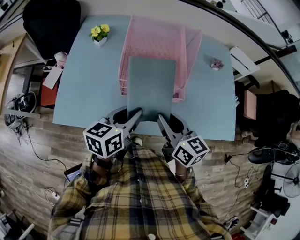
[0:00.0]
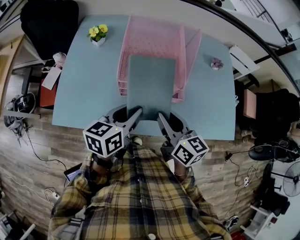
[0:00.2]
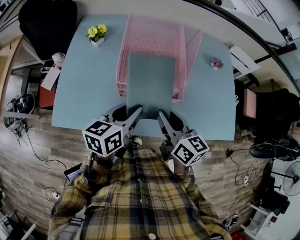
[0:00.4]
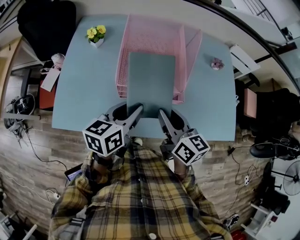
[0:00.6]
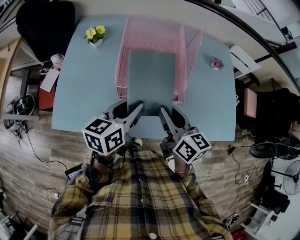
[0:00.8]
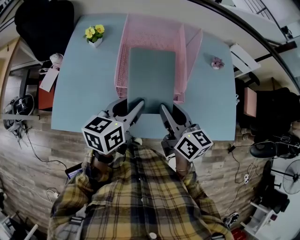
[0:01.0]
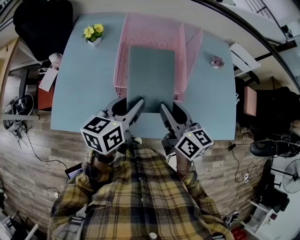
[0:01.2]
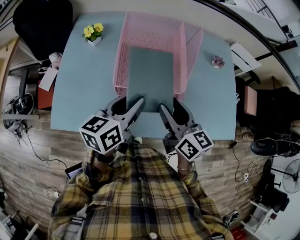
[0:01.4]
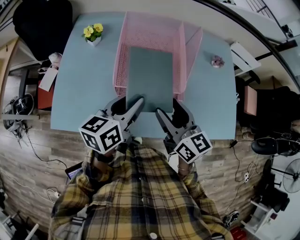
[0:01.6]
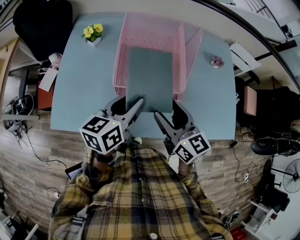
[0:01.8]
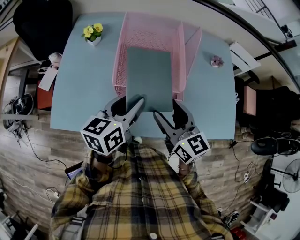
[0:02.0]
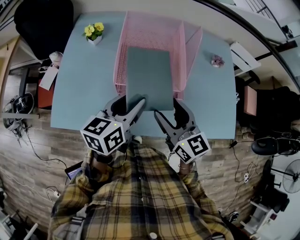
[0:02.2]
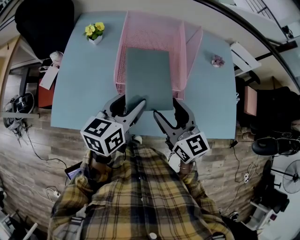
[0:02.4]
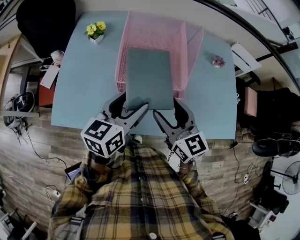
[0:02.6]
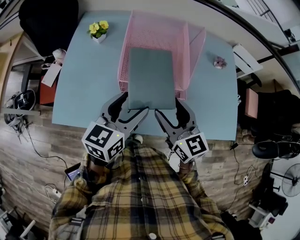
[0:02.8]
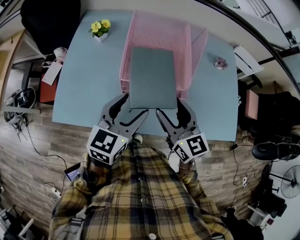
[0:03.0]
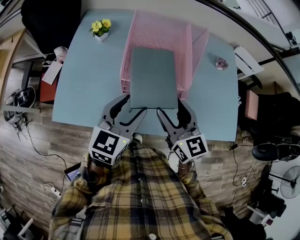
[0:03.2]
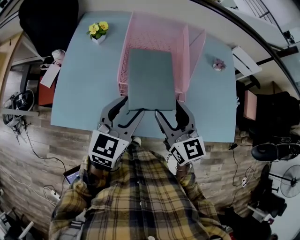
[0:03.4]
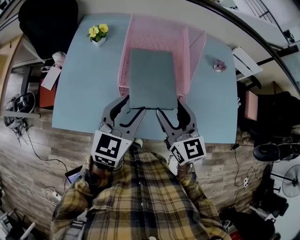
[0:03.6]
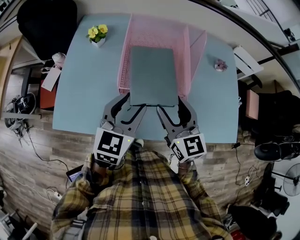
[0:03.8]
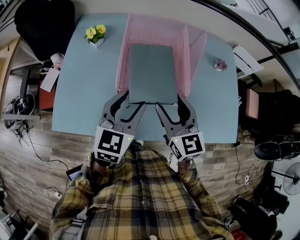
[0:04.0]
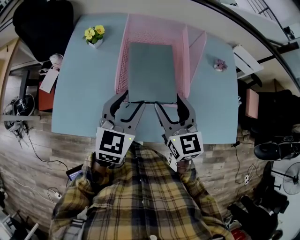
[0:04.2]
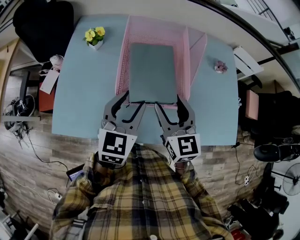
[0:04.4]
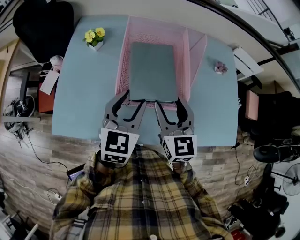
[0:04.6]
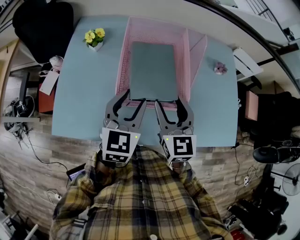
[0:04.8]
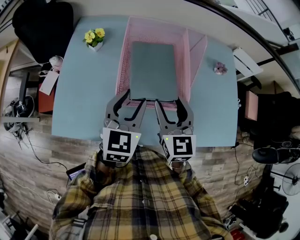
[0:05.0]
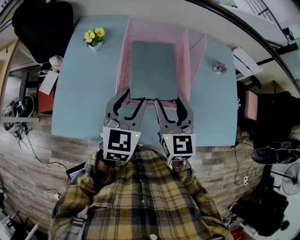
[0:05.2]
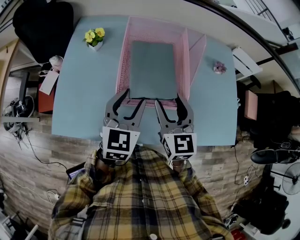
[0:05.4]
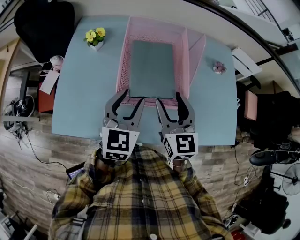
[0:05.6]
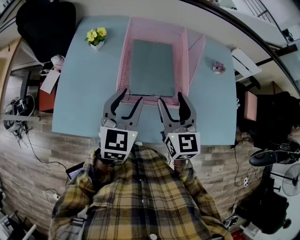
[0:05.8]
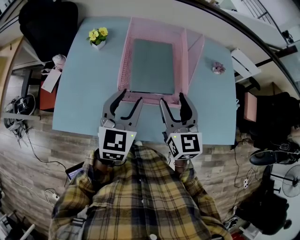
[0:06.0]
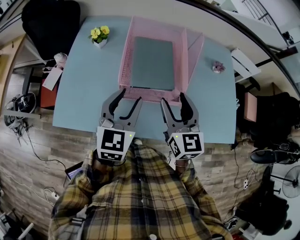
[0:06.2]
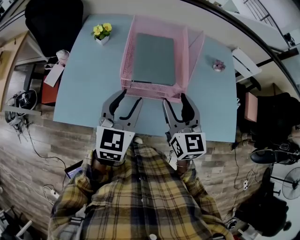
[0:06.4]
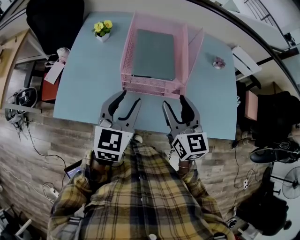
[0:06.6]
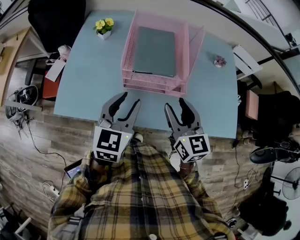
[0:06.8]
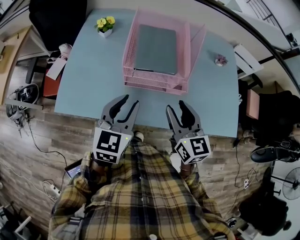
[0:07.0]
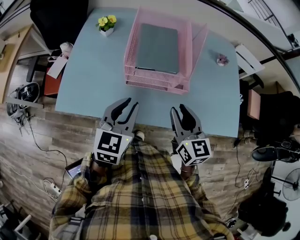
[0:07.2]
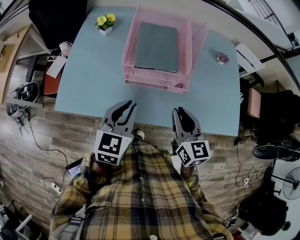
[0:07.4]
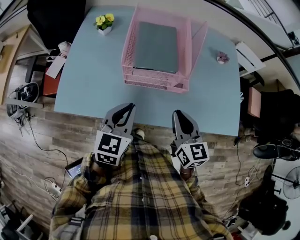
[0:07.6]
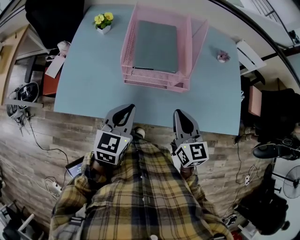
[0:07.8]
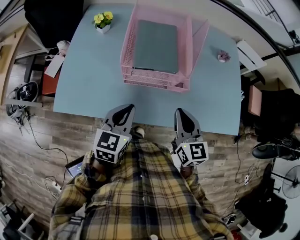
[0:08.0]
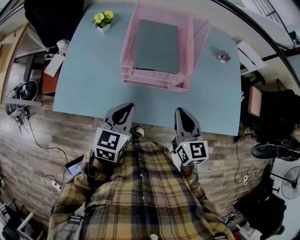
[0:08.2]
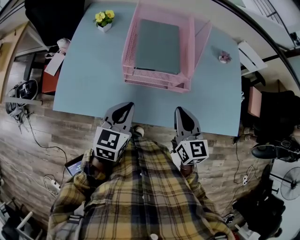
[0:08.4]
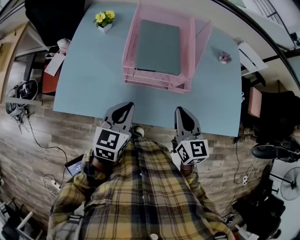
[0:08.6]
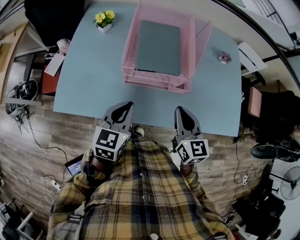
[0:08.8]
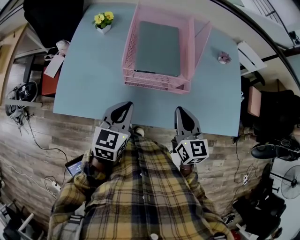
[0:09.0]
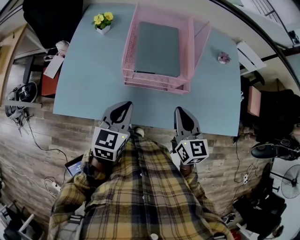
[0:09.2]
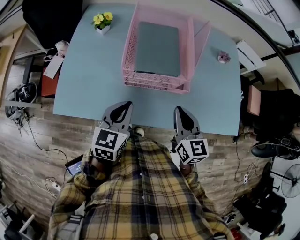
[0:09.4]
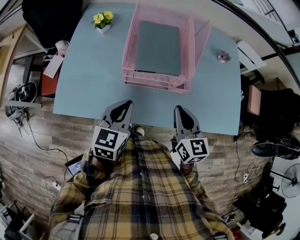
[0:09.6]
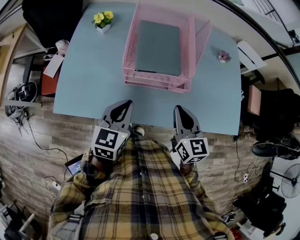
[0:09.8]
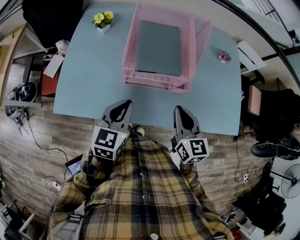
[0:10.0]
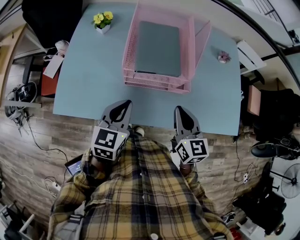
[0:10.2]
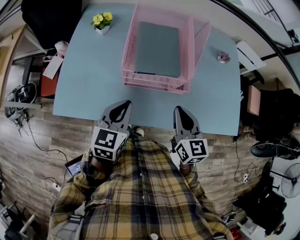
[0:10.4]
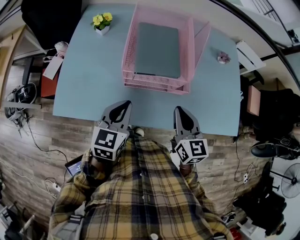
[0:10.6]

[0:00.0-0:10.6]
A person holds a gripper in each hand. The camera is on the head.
0:00.0 to 0:01.6: The left gripper travels forward by some 5 cm. Meanwhile the right gripper moves about 5 cm, and opens up.
0:01.6 to 0:03.0: The left gripper changes its angle by roughly 30 degrees, and opens its fingers.
0:03.0 to 0:04.6: The grippers both shift forward by roughly 5 cm.
0:04.6 to 0:06.0: The grippers stay close to where they were, moving slightly.
0:06.0 to 0:07.6: The right gripper is displaced backward and downward by roughly 15 cm, and closes up. Meanwhile the left gripper heads backward, covering roughly 10 cm, and closes its fingers.
0:07.6 to 0:09.0: The grippers make only small movements.
0:09.0 to 0:10.6: Both grippers stay put.

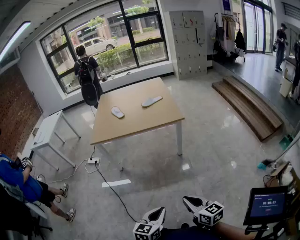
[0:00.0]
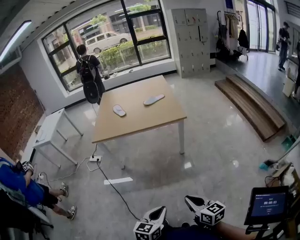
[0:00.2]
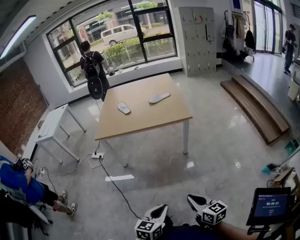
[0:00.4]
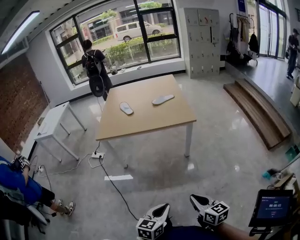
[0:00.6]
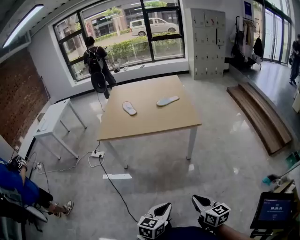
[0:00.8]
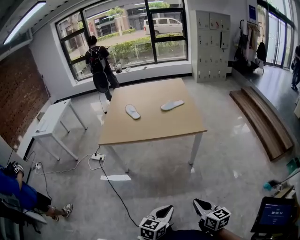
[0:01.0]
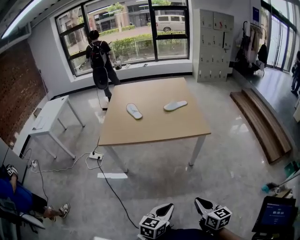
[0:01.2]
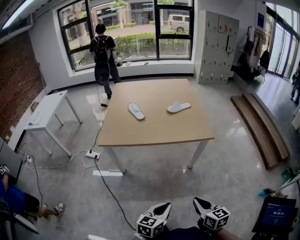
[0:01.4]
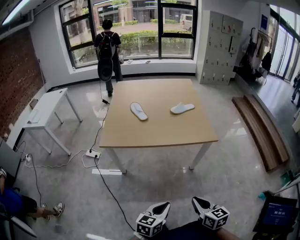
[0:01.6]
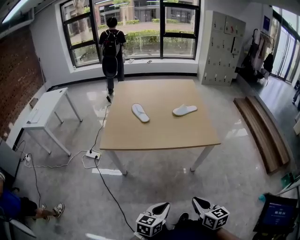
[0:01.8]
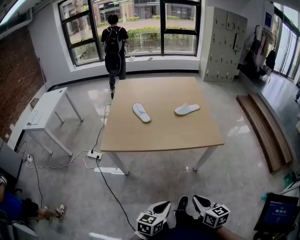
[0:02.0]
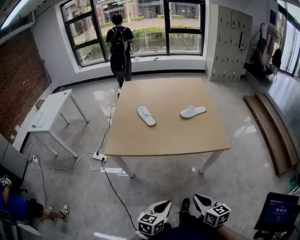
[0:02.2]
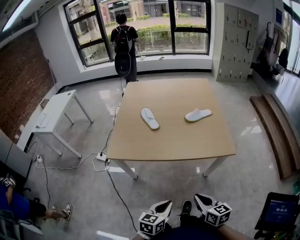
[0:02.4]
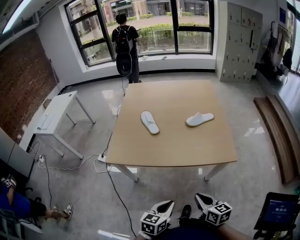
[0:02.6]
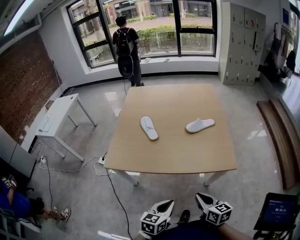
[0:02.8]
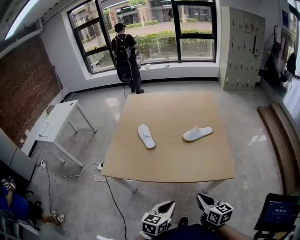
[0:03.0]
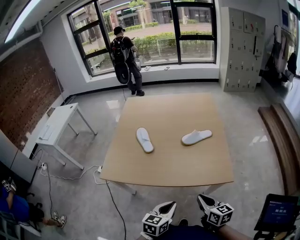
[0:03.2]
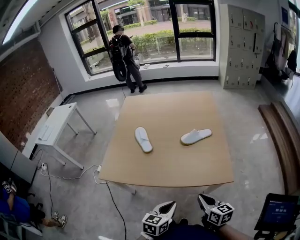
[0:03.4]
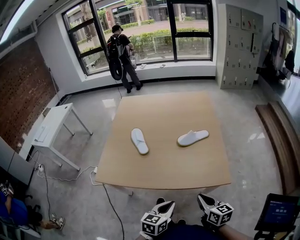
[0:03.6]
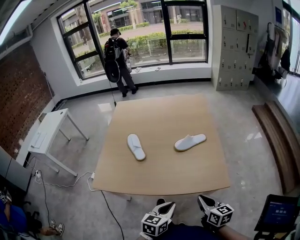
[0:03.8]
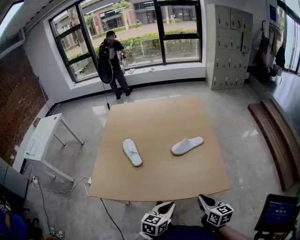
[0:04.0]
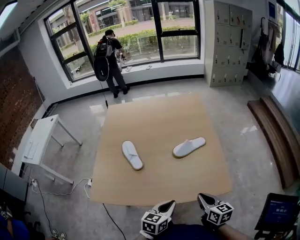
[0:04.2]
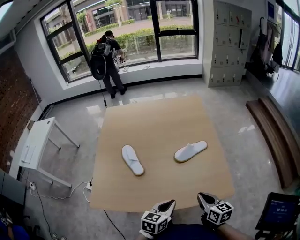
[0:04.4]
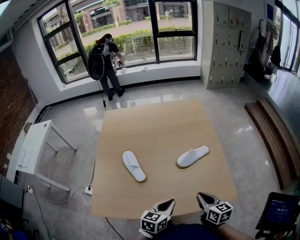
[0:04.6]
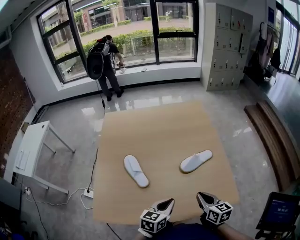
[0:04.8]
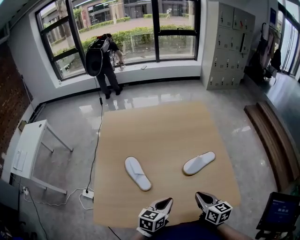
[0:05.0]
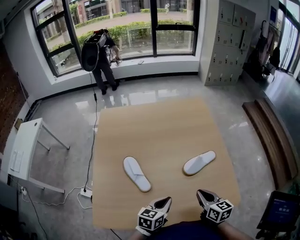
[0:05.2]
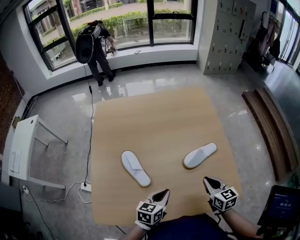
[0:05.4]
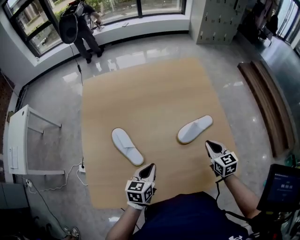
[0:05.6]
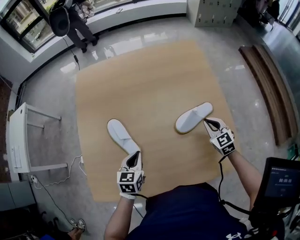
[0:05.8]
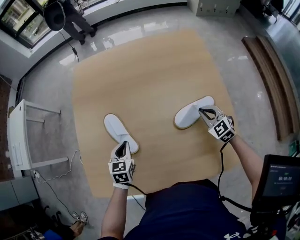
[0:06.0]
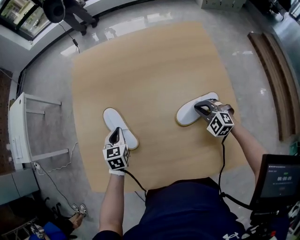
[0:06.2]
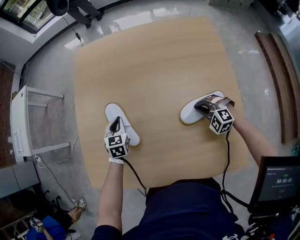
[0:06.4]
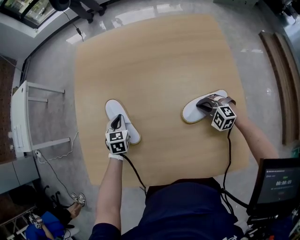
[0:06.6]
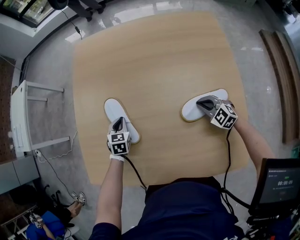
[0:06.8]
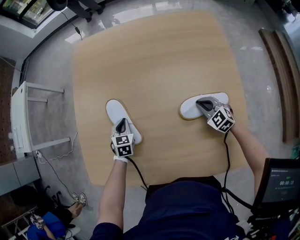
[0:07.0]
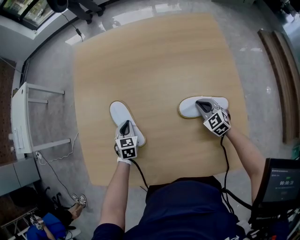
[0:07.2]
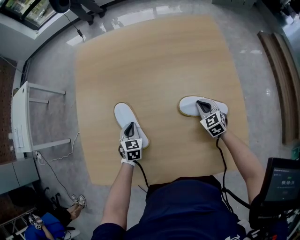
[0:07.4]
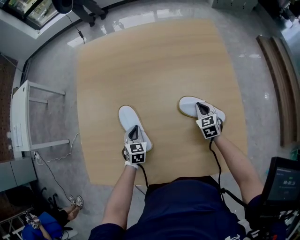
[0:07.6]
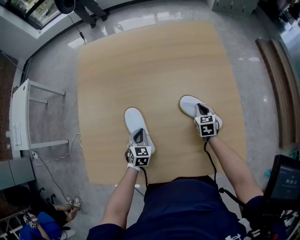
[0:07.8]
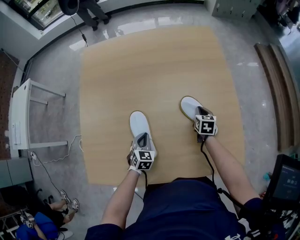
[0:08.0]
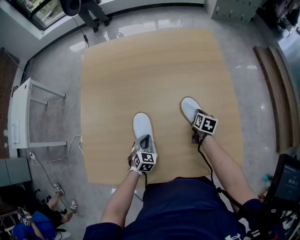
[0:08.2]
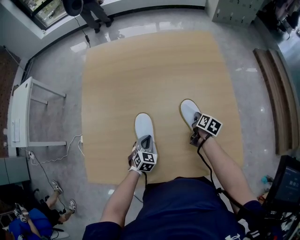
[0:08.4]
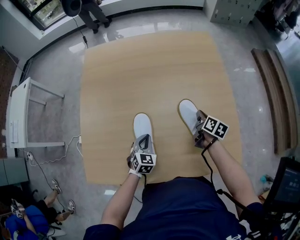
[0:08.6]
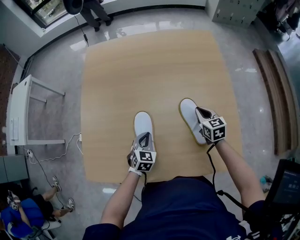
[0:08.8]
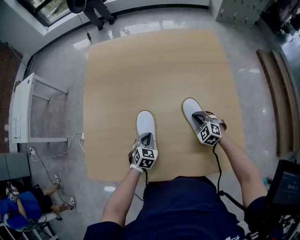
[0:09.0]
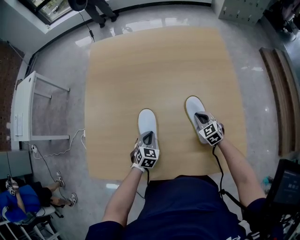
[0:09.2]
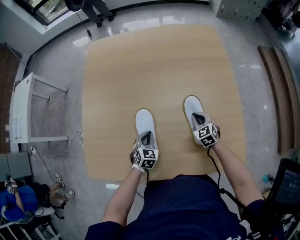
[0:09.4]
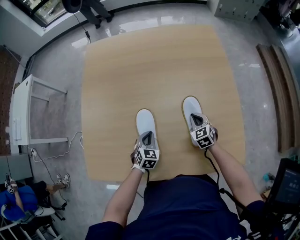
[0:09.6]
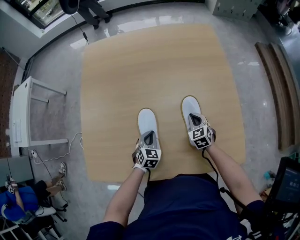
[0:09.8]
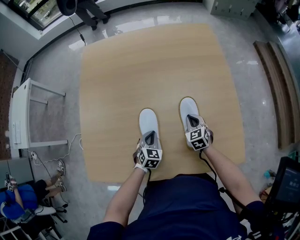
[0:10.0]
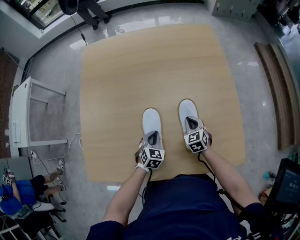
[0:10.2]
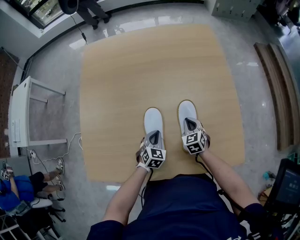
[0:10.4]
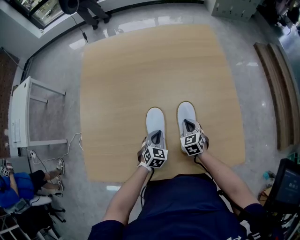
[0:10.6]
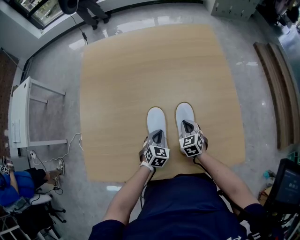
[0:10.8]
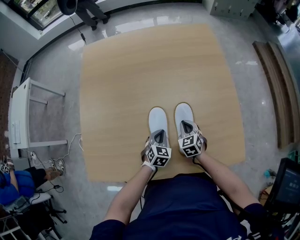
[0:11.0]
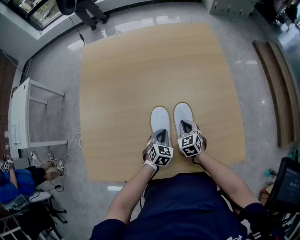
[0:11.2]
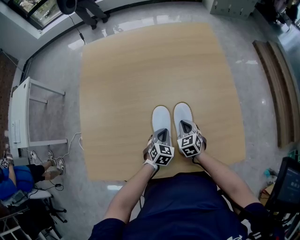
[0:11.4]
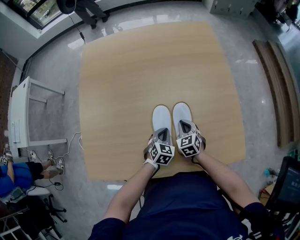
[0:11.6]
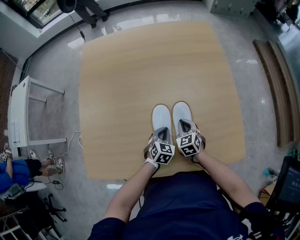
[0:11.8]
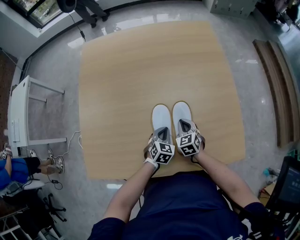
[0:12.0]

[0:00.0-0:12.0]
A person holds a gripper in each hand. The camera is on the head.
0:00.0 to 0:01.6: Both grippers travel together forward and to the left, approximately 30 cm.
0:01.6 to 0:03.0: Both grippers travel together forward, approximately 30 cm.
0:03.0 to 0:04.4: The grippers both shift forward by some 20 cm.
0:04.4 to 0:06.0: The left gripper is displaced to the left and forward by approximately 35 cm, and rotates approximately 30 degrees, while the right gripper moves forward, about 30 cm, and twists approximately 50 degrees counterclockwise, seen from behind.
0:06.0 to 0:07.6: Both grippers move downward, roughly 10 cm. The right gripper rotates about 20 degrees.
0:07.6 to 0:09.0: The left gripper moves to the right, roughly 5 cm. Meanwhile the right gripper moves up and down over about 10 cm, changing direction 2 times, and changes its angle by about 40 degrees.
0:09.0 to 0:10.4: The right gripper changes its angle by approximately 40 degrees.
0:10.4 to 0:12.0: The grippers make only small movements.

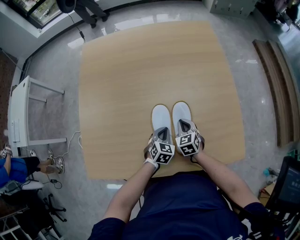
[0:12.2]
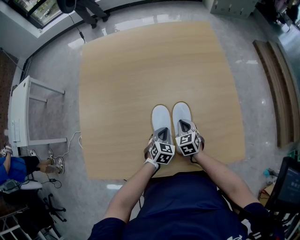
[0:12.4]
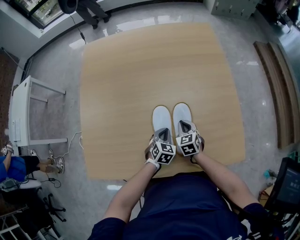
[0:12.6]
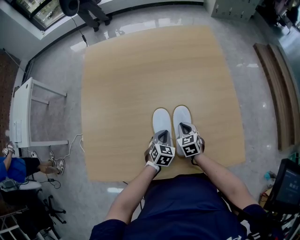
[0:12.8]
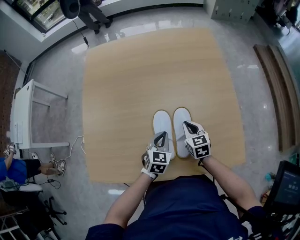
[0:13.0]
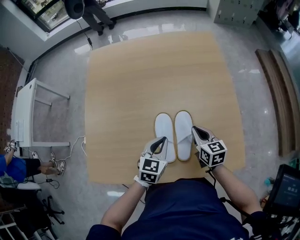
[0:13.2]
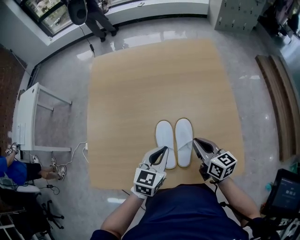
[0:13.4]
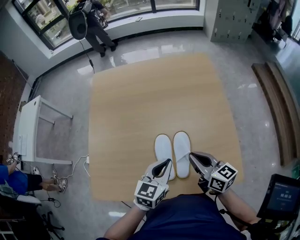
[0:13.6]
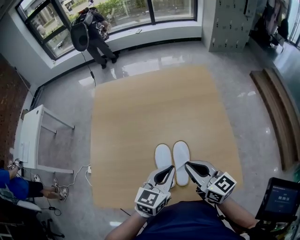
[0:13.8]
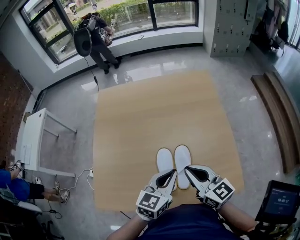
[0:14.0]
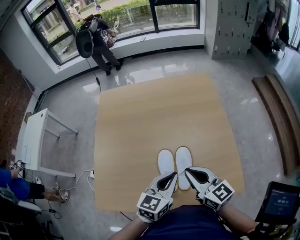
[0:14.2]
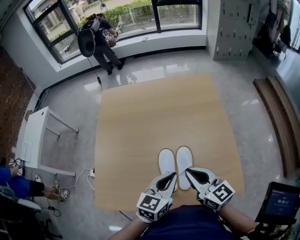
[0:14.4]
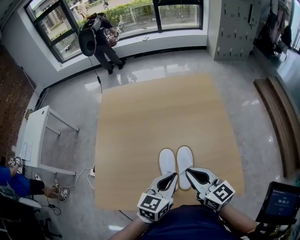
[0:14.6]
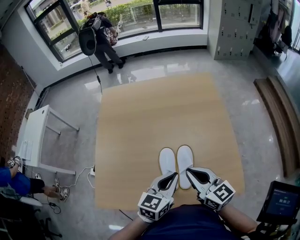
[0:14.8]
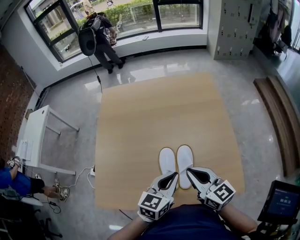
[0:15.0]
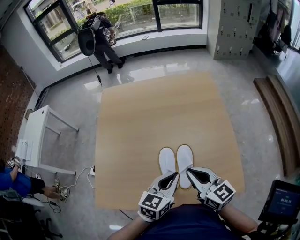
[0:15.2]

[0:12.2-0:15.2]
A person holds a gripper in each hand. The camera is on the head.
0:12.2 to 0:13.8: The grippers both shift upward by some 30 cm. The right gripper points its fingers some 40 degrees further upward, while the left gripper turns by approximately 40 degrees.
0:13.8 to 0:15.2: The grippers move only a little.
